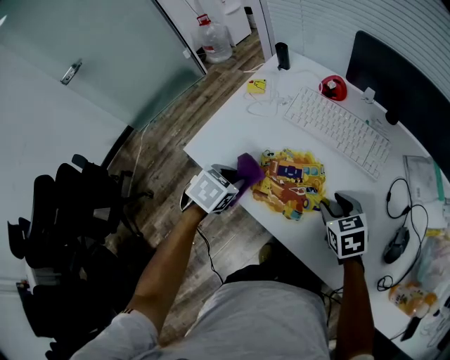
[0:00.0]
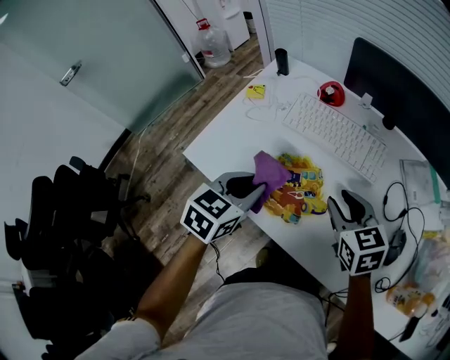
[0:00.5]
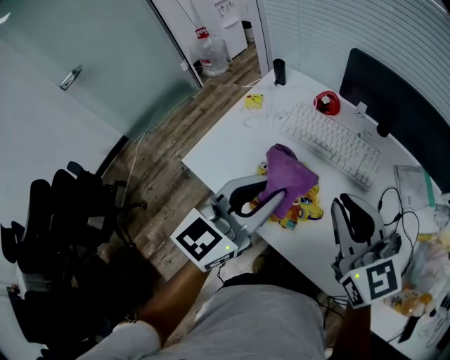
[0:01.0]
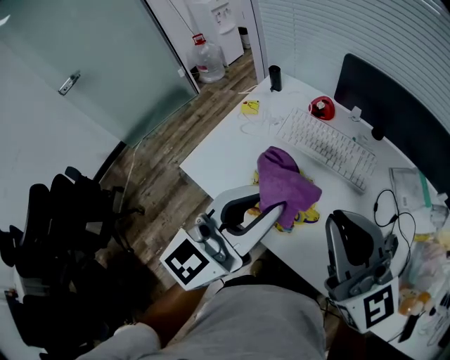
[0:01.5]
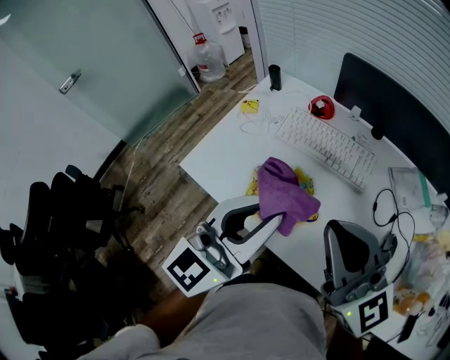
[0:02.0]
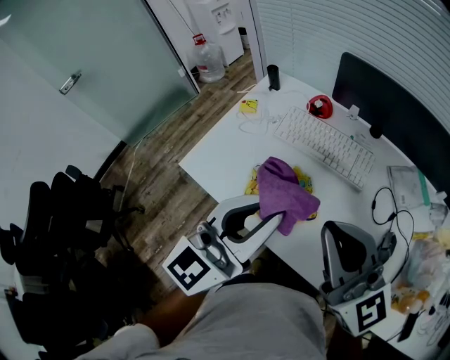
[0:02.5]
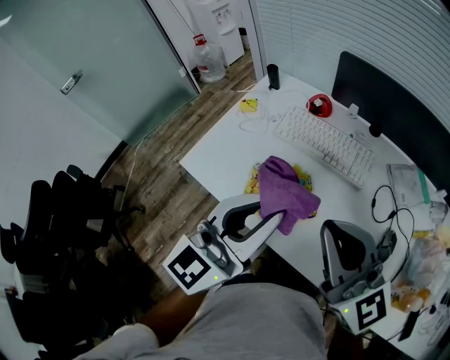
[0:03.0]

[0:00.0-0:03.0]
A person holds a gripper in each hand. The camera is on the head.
0:00.0 to 0:01.5: The left gripper moves upward and to the right, some 30 cm, and tilts its fingers approximately 70 degrees upward. The right gripper is displaced upward by approximately 30 cm, tips its fingers upward by some 50 degrees, and closes up.
0:01.5 to 0:03.0: There are only small adjustments of the grippers.

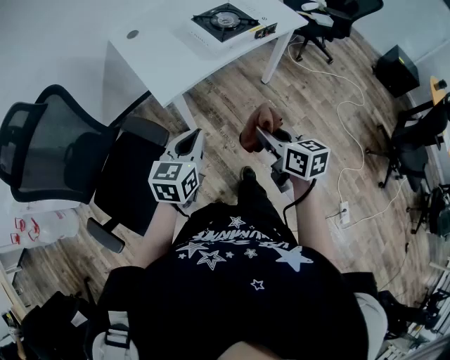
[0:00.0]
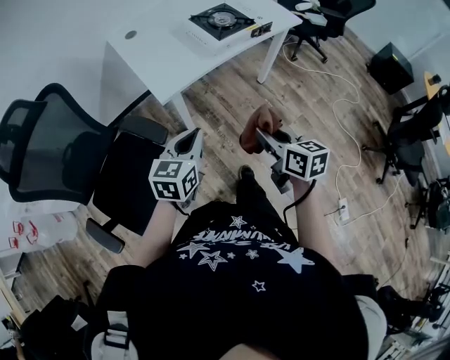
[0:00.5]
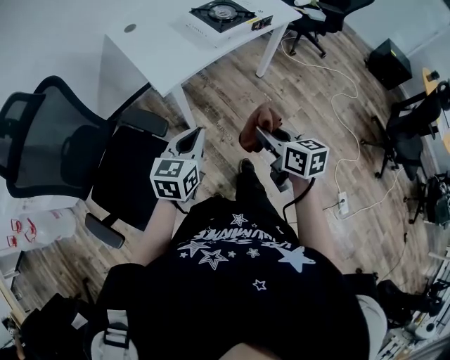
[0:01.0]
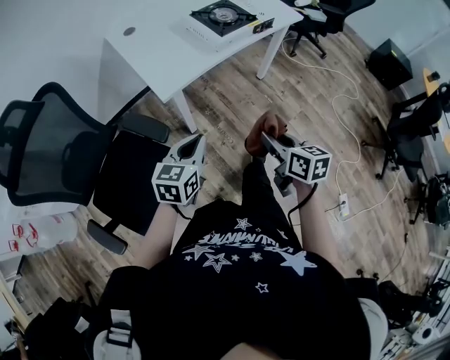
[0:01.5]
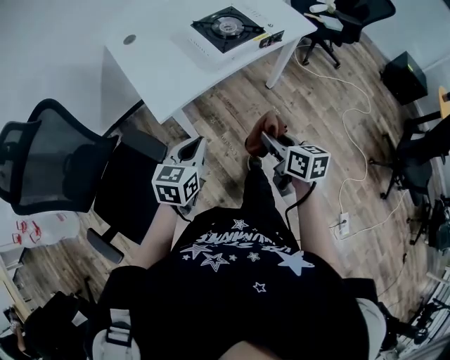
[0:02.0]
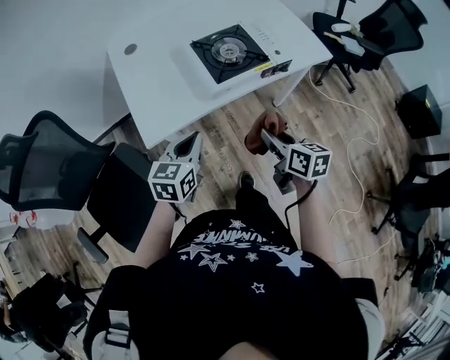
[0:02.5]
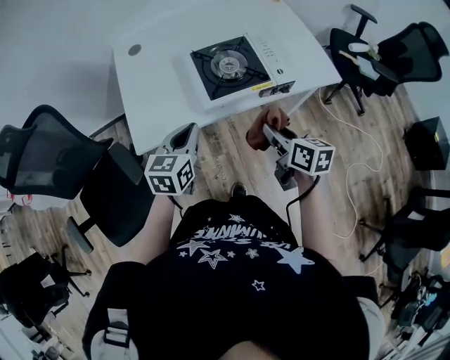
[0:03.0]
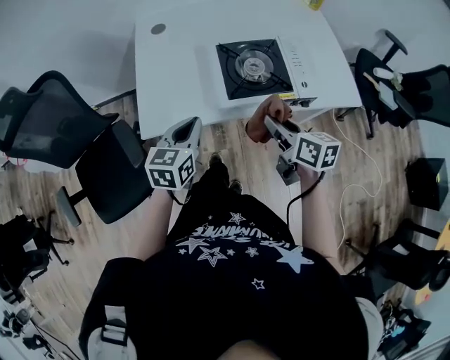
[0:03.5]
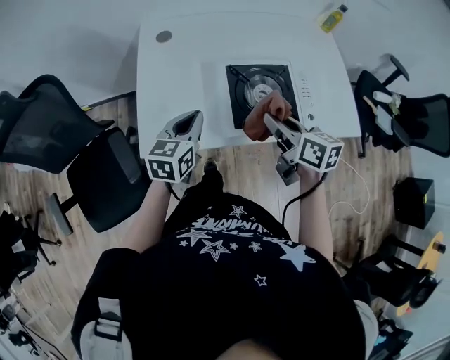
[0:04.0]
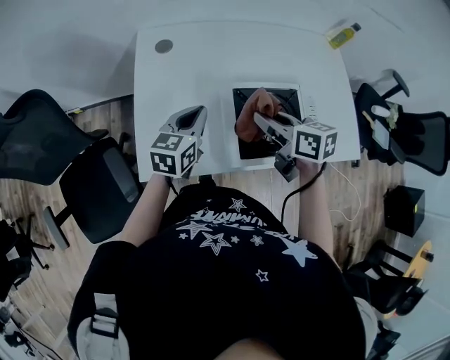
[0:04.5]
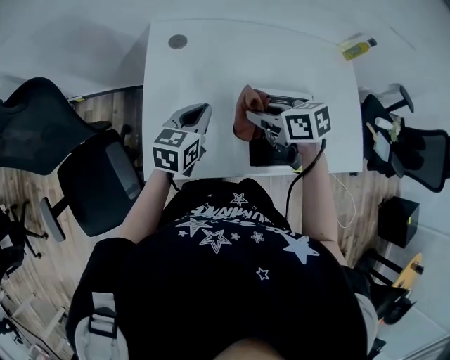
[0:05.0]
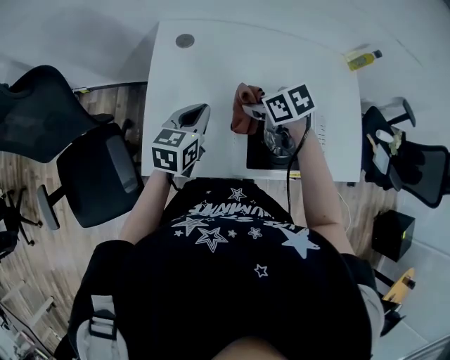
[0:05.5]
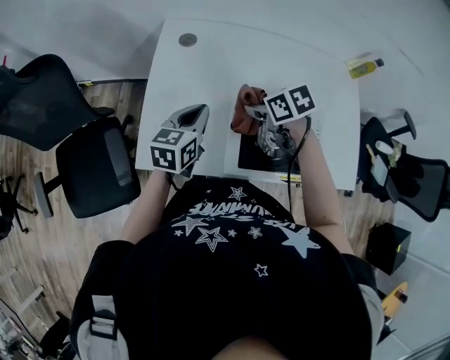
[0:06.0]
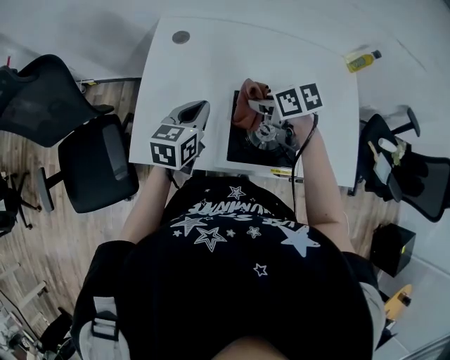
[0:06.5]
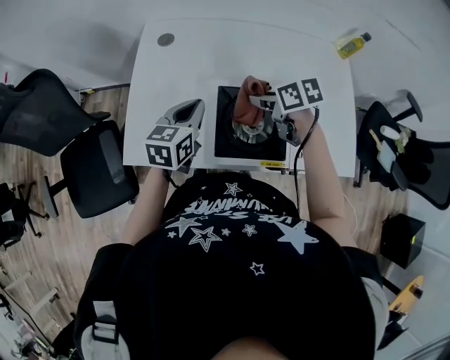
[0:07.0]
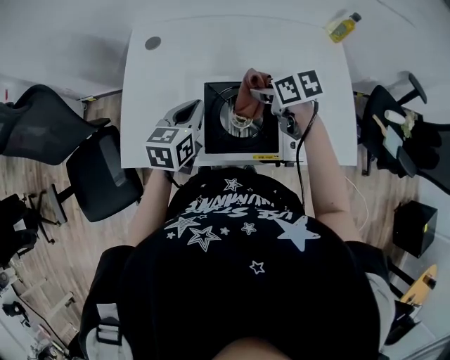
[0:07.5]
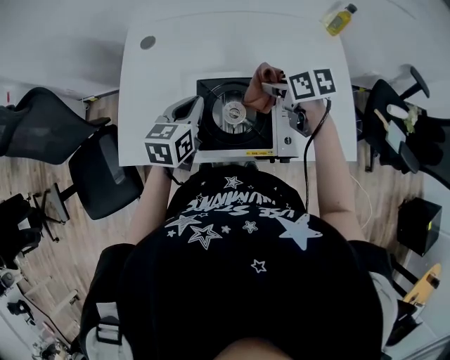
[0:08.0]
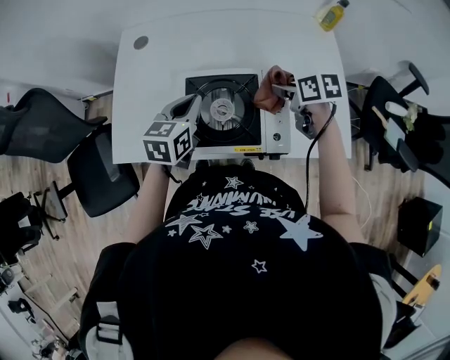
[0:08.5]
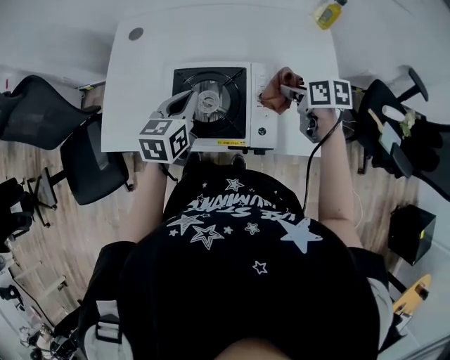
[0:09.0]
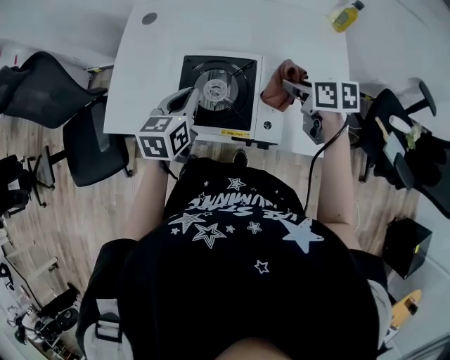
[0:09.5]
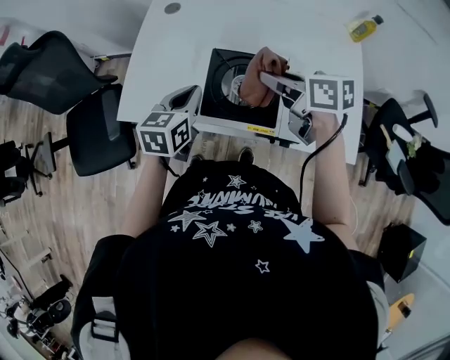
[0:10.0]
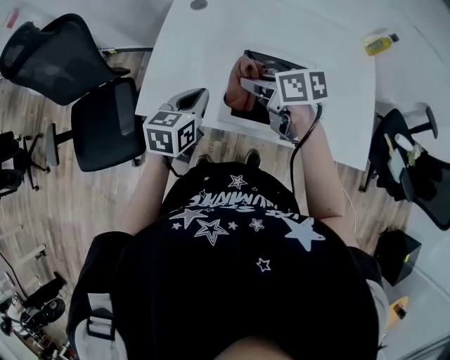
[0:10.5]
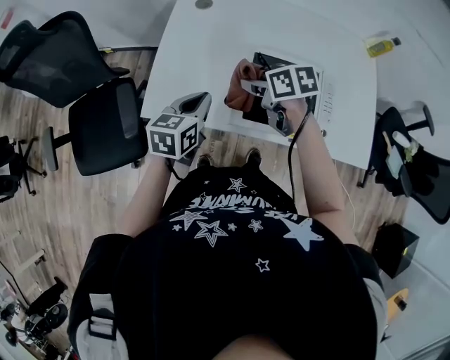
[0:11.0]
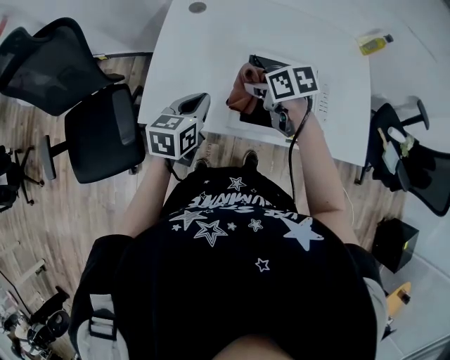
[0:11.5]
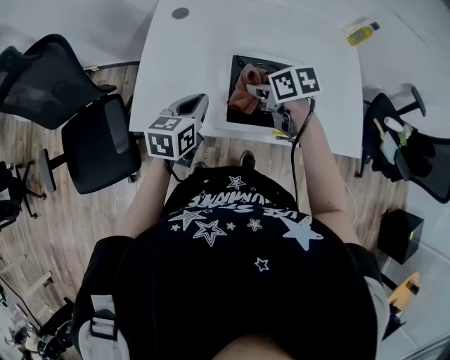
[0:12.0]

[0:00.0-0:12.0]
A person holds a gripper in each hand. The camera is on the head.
0:00.0 to 0:02.0: The right gripper moves forward and downward, roughly 10 cm; the left gripper shifts about 5 cm forward.
0:02.0 to 0:04.0: The left gripper changes place by roughly 30 cm, and turns by roughly 30 degrees. The right gripper changes place by about 40 cm, and changes its angle by some 30 degrees.
0:04.0 to 0:06.0: The right gripper travels forward and downward by approximately 20 cm, and tips its fingers downward by approximately 30 degrees. Meanwhile the left gripper heads forward, covering approximately 10 cm.
0:06.0 to 0:08.0: The left gripper shifts about 15 cm to the right and backward. Meanwhile the right gripper moves to the right, approximately 20 cm.
0:08.0 to 0:10.0: The right gripper shifts approximately 10 cm upward, to the left and backward. The left gripper heads backward, covering about 5 cm.
0:10.0 to 0:12.0: The left gripper goes some 5 cm to the left, while the right gripper heads to the left and downward, covering approximately 10 cm, and rotates about 20 degrees.

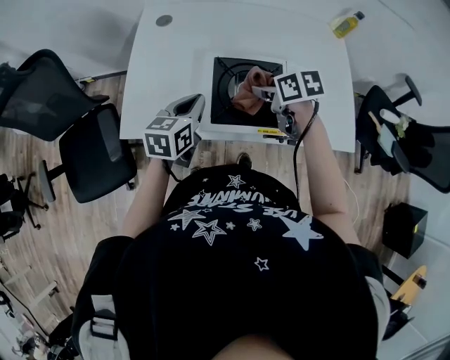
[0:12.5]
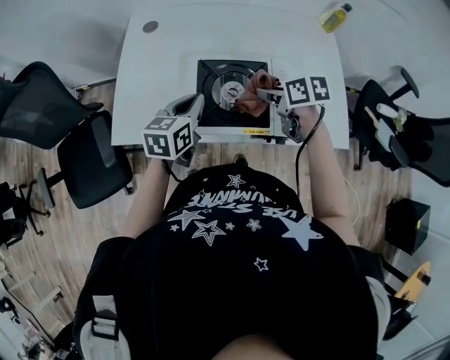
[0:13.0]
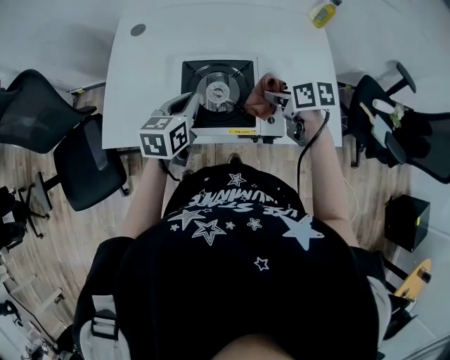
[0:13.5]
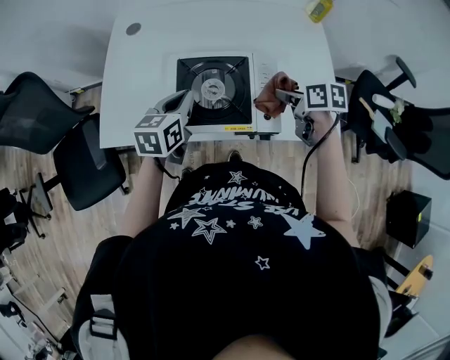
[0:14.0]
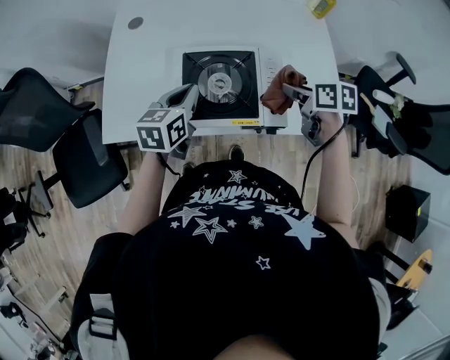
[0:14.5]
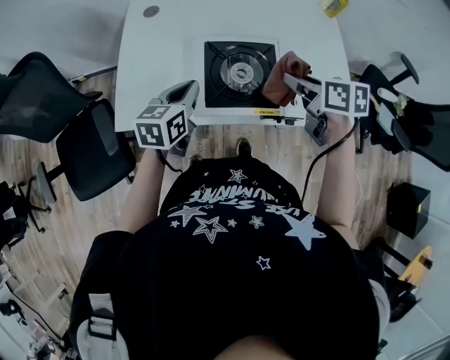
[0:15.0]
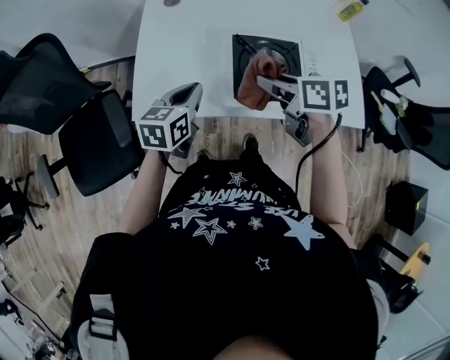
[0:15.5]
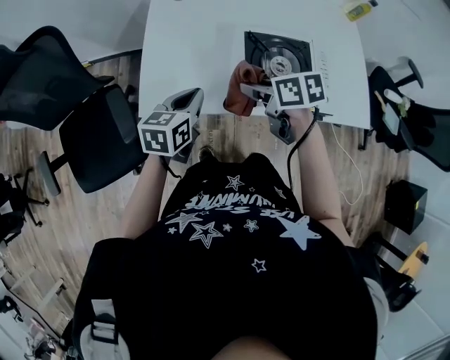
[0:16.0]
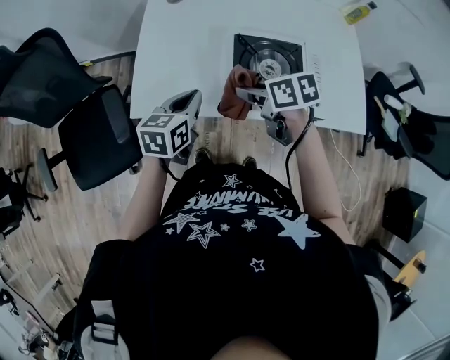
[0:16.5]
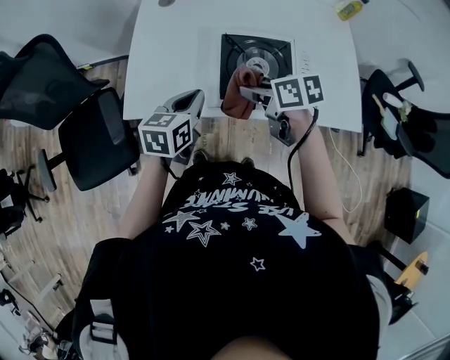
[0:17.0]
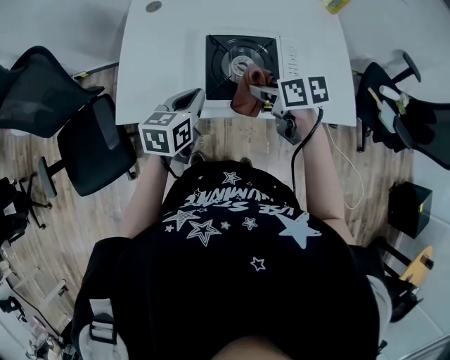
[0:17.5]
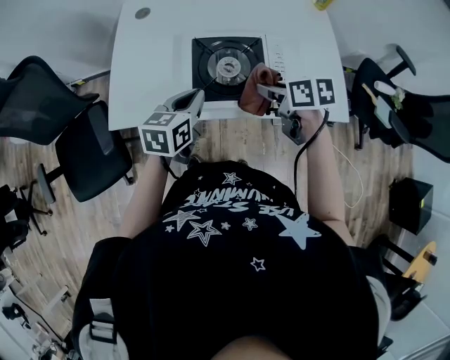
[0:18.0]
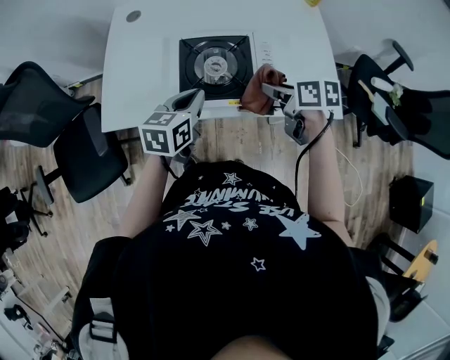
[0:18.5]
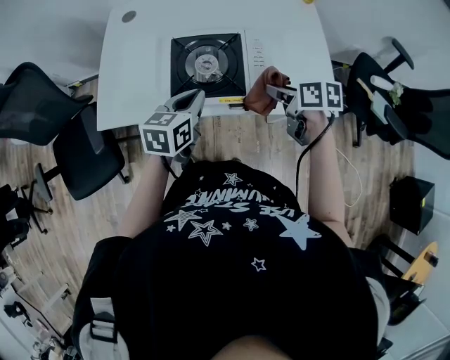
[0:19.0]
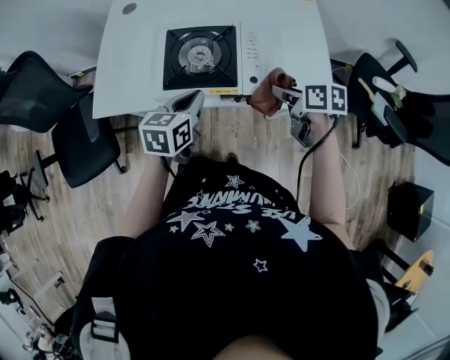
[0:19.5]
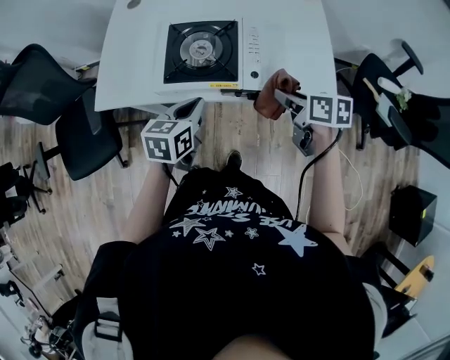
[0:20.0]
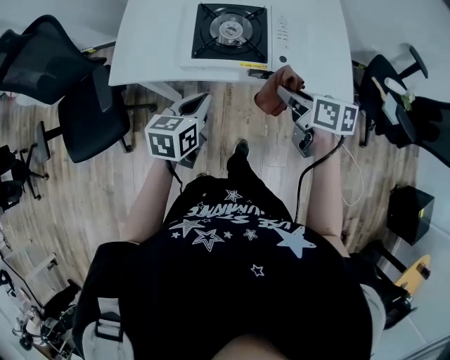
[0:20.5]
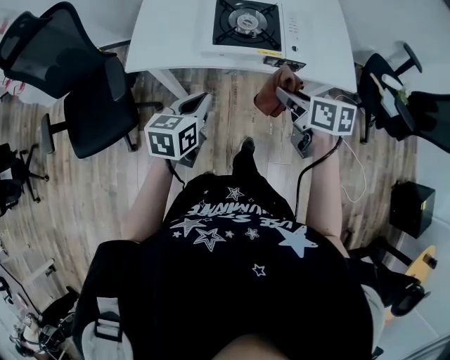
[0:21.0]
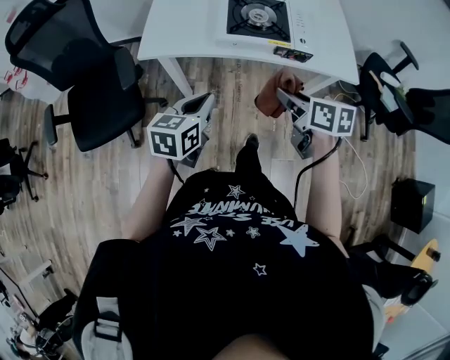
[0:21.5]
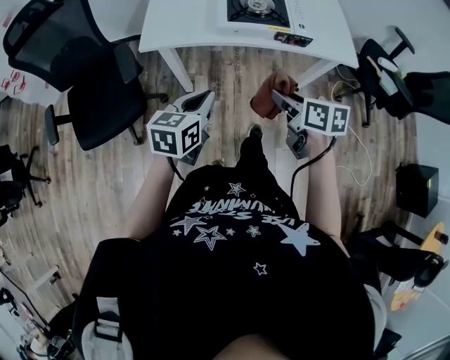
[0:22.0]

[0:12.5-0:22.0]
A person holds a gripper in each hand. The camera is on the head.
0:12.5 to 0:14.5: The left gripper goes approximately 5 cm to the right, while the right gripper heads to the right, covering roughly 15 cm.
0:14.5 to 0:16.5: The left gripper shifts roughly 15 cm to the left, while the right gripper shifts roughly 30 cm to the left, and swivels approximately 20 degrees.
0:16.5 to 0:18.0: The grippers both shift to the right by approximately 15 cm.
0:18.0 to 0:20.0: The right gripper shifts approximately 15 cm to the right and backward. The left gripper goes some 10 cm backward and to the right.
0:20.0 to 0:22.0: The left gripper goes about 30 cm backward and to the left. The right gripper moves to the left and backward, about 35 cm.

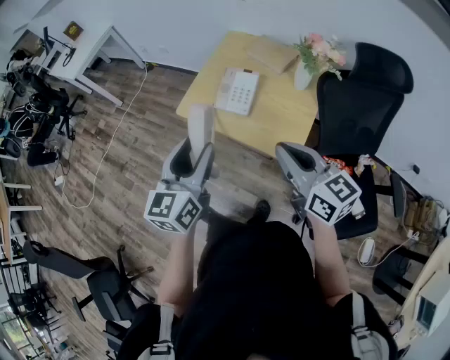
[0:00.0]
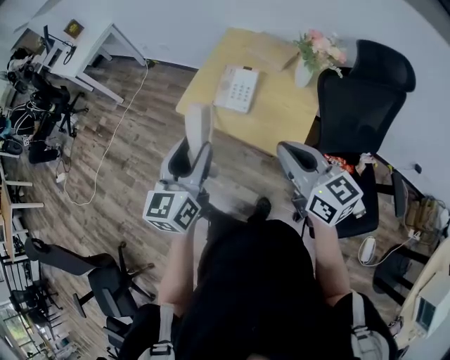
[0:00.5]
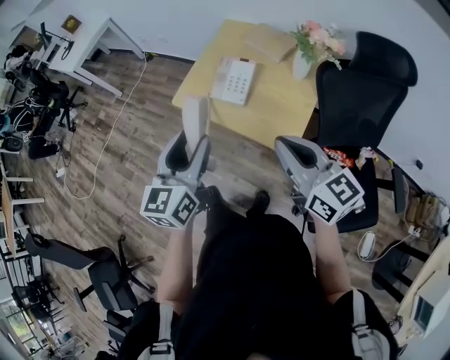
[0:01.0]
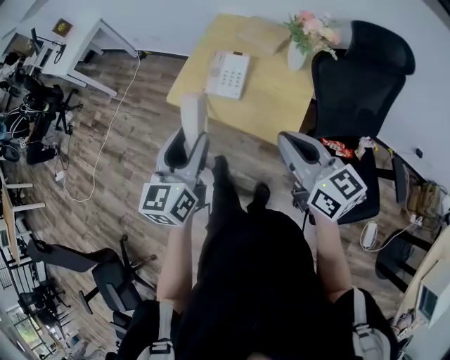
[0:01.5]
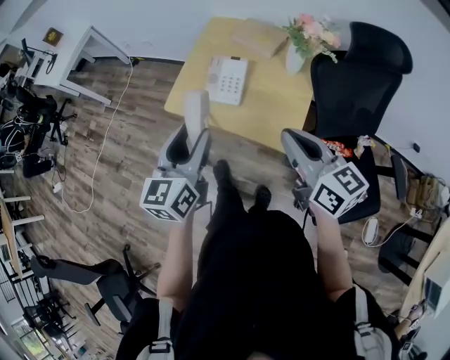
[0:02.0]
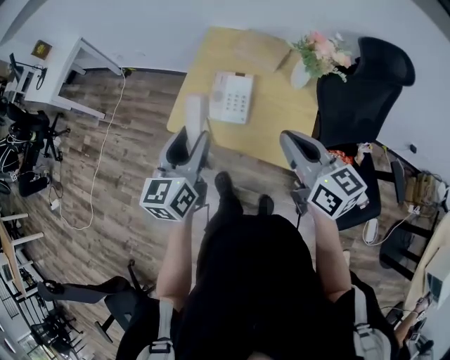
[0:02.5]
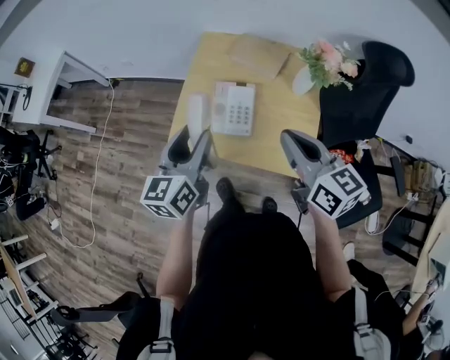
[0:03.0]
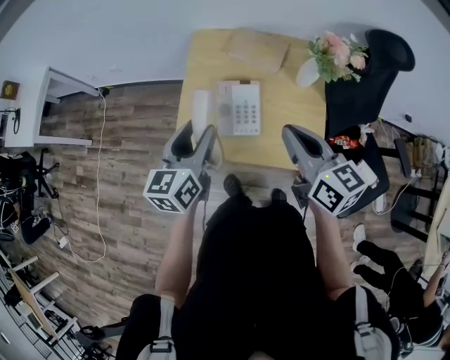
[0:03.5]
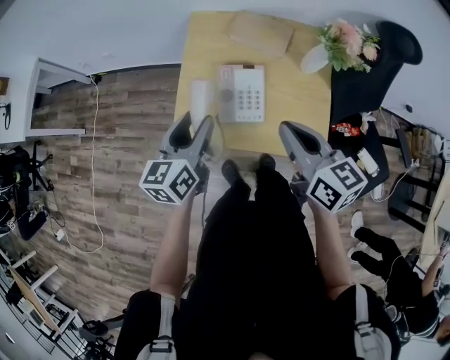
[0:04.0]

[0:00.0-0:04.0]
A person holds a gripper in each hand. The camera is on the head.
0:00.0 to 0:02.0: The left gripper moves about 5 cm.
0:02.0 to 0:04.0: Both grippers travel together forward and to the left, about 25 cm. The left gripper rotates approximately 20 degrees. The right gripper swivels some 20 degrees.
